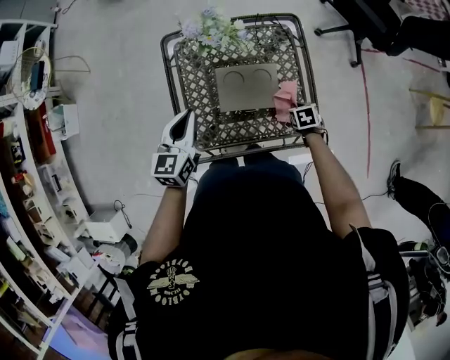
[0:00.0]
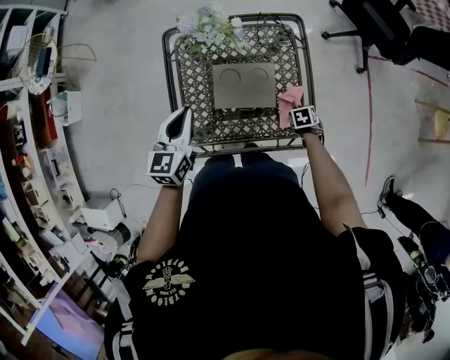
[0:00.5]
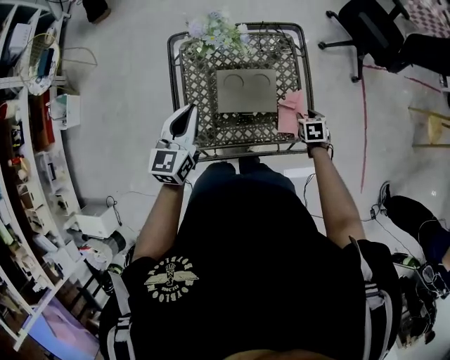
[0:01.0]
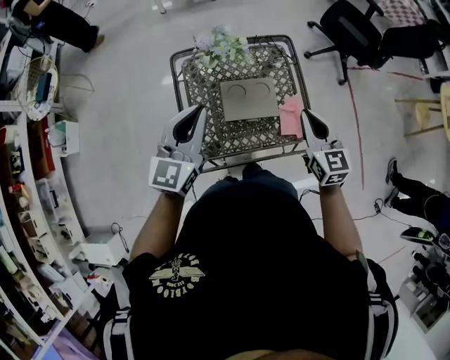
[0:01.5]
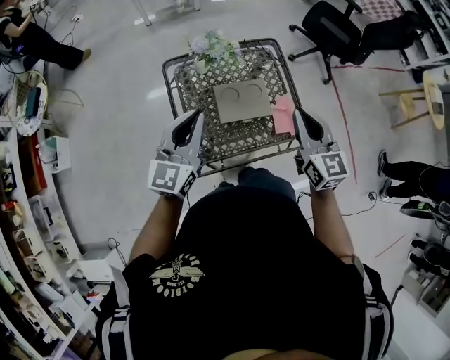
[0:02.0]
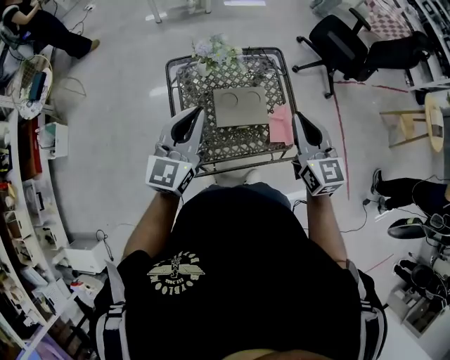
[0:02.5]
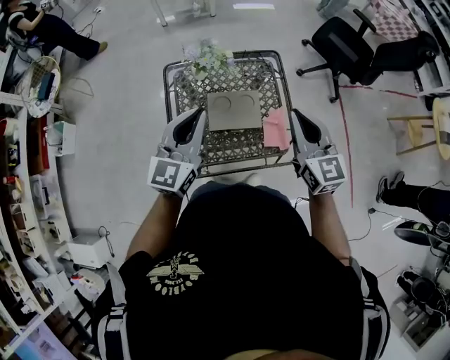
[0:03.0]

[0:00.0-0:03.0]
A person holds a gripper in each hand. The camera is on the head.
0:00.0 to 0:01.5: The left gripper moves upward, approximately 15 cm, and turns by about 20 degrees. The right gripper goes some 35 cm upward, tilts its fingers approximately 50 degrees upward, and opens, then closes again.
0:01.5 to 0:03.0: The left gripper moves to the right, some 5 cm. Meanwhile the right gripper moves upward, roughly 10 cm.

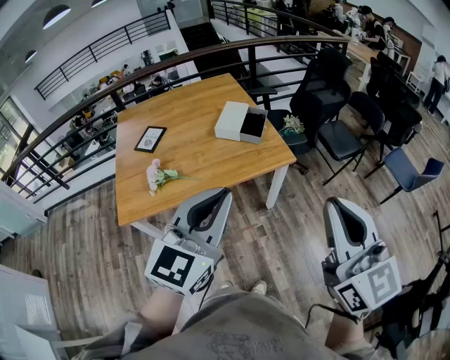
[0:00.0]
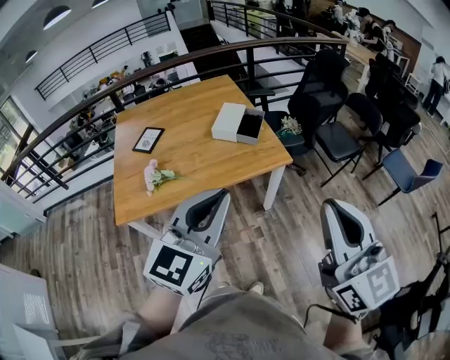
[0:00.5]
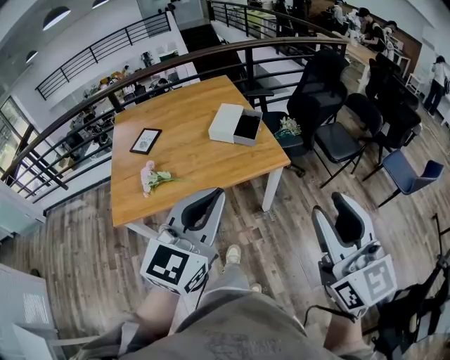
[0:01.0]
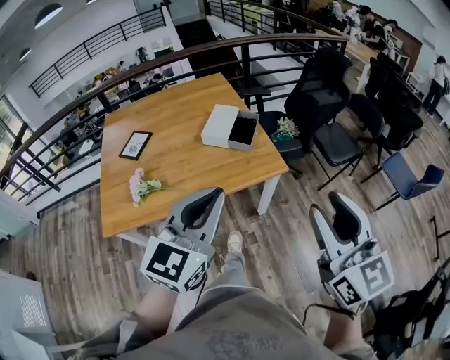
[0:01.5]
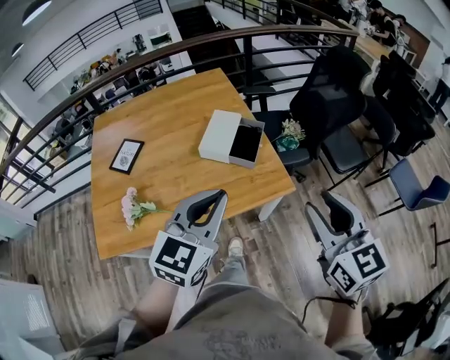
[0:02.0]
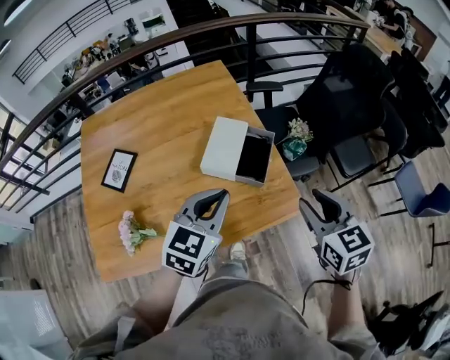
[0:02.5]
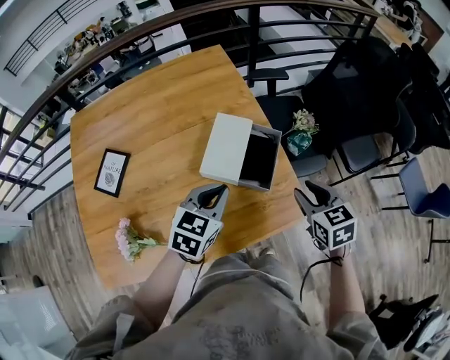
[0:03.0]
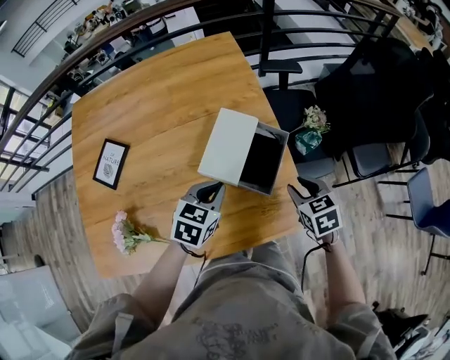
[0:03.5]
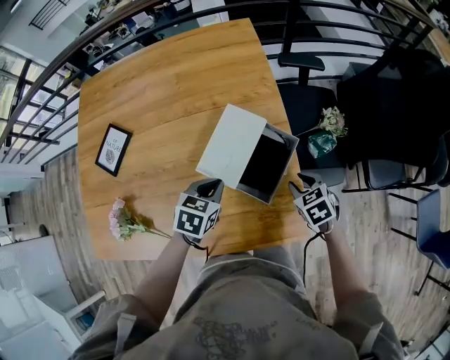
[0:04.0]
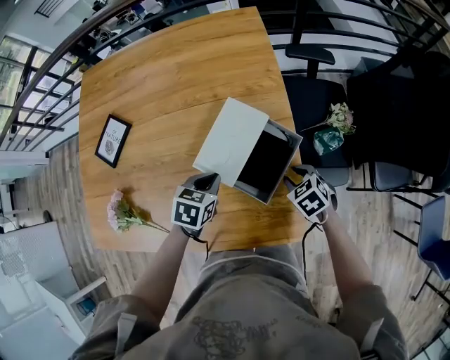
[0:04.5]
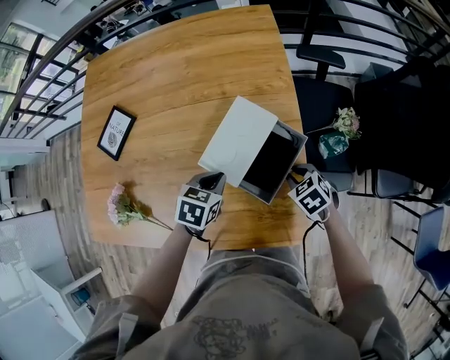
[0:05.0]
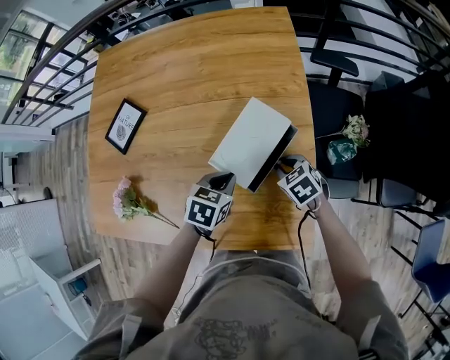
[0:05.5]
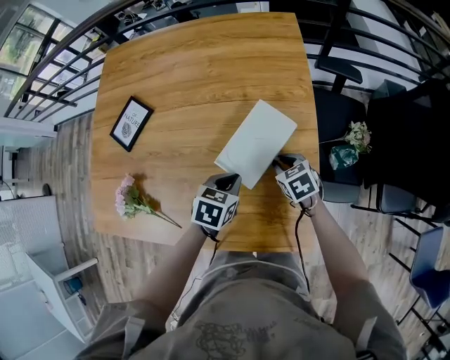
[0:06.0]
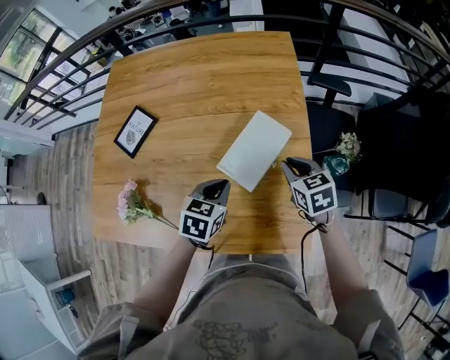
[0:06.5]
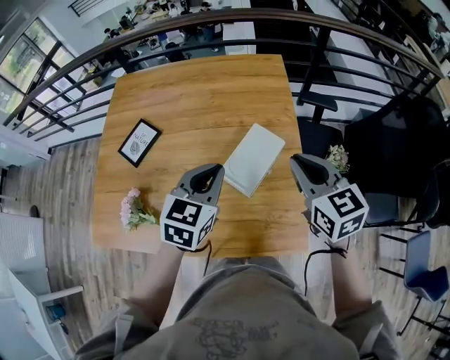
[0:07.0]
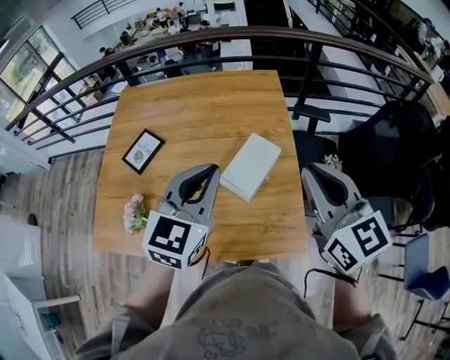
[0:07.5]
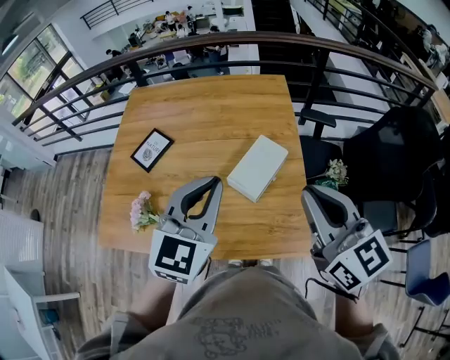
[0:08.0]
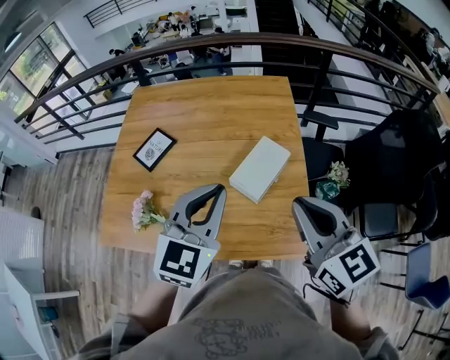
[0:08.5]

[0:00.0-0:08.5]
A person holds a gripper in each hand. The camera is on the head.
0:00.0 to 0:02.0: The grippers both shift forward and downward by roughly 30 cm. The right gripper opens up.
0:02.0 to 0:04.0: Both grippers move downward and forward, some 50 cm. The left gripper tilts its fingers approximately 40 degrees downward. The right gripper points its fingers some 40 degrees further downward.
0:04.0 to 0:06.5: The right gripper shifts approximately 15 cm forward, to the left and upward, and closes.
0:06.5 to 0:08.5: The right gripper moves upward and backward, roughly 35 cm, and tips its fingers upward by approximately 30 degrees; the left gripper shifts about 30 cm upward, and tips its fingers upward by about 30 degrees.

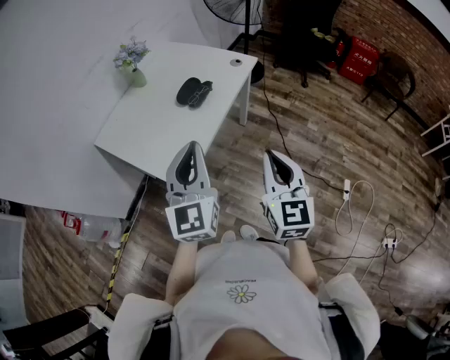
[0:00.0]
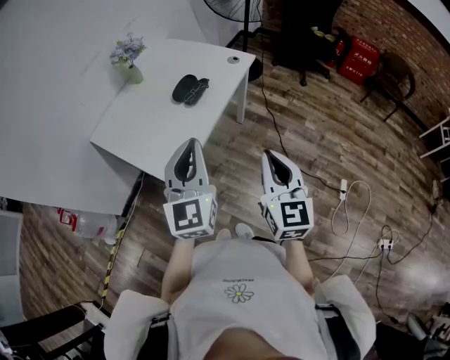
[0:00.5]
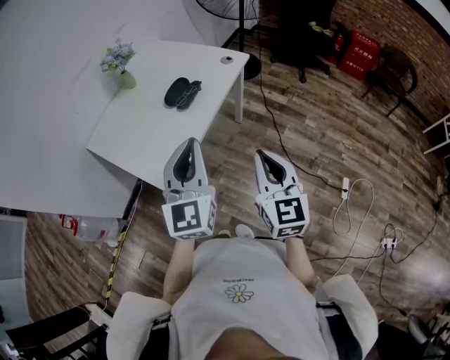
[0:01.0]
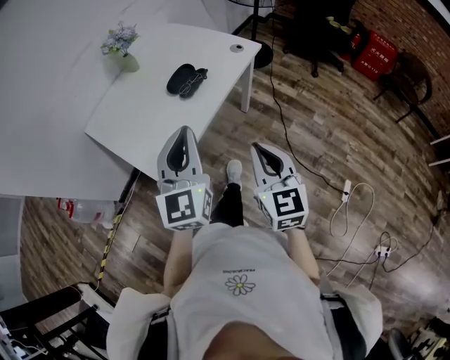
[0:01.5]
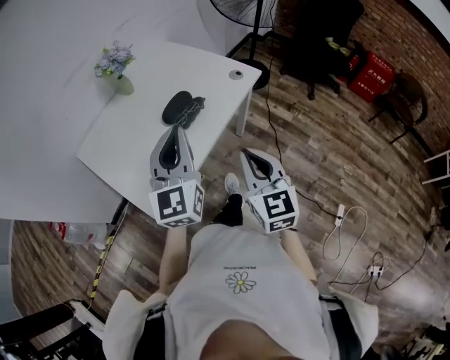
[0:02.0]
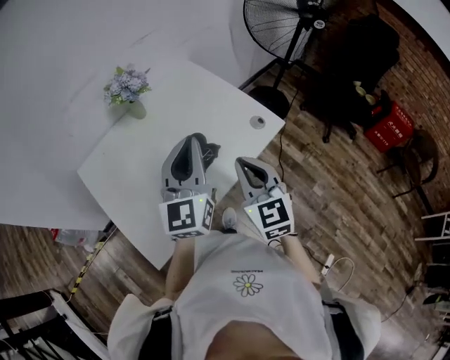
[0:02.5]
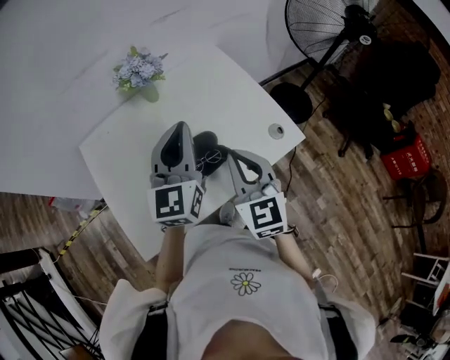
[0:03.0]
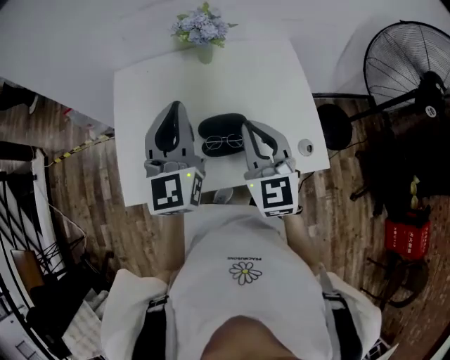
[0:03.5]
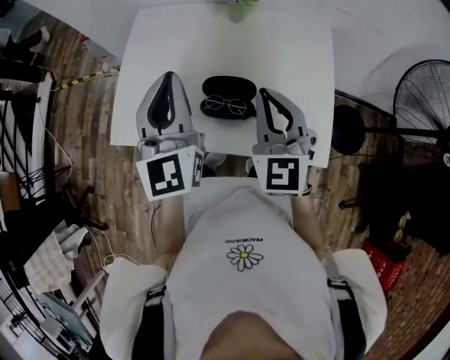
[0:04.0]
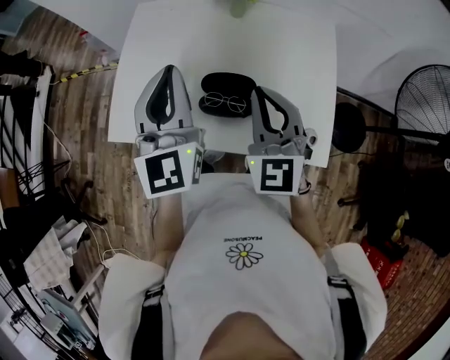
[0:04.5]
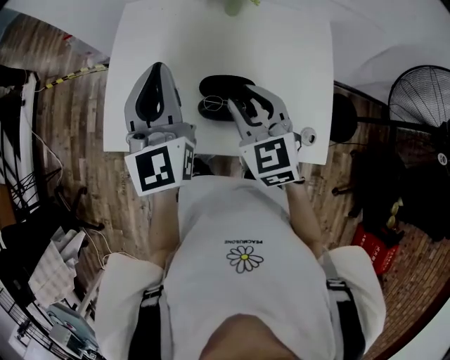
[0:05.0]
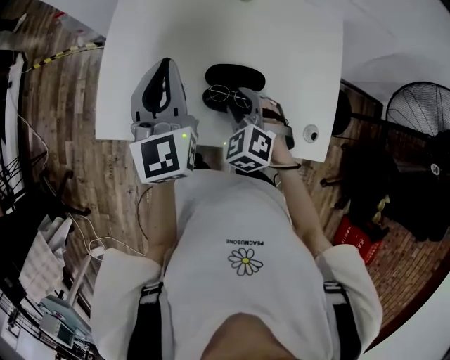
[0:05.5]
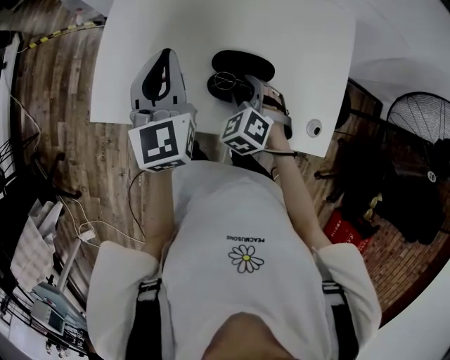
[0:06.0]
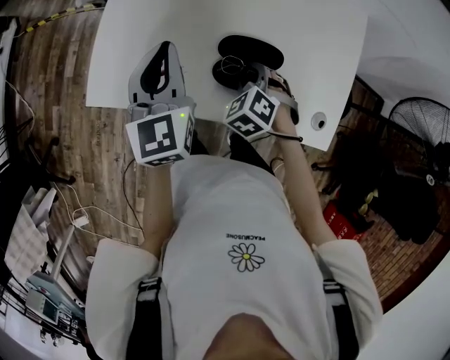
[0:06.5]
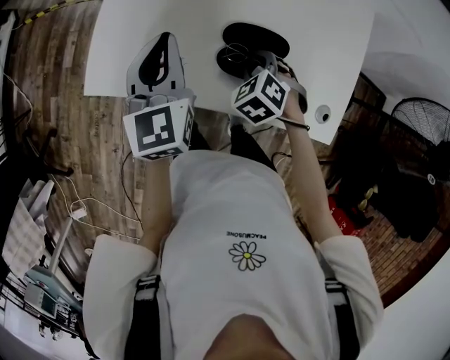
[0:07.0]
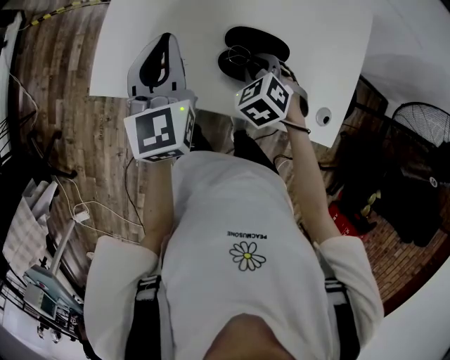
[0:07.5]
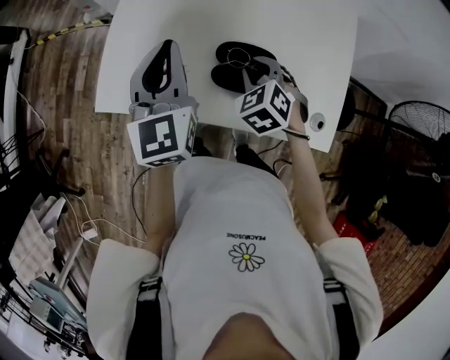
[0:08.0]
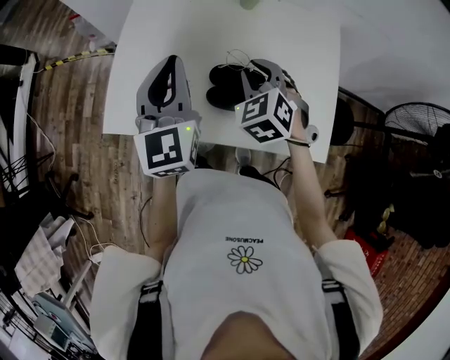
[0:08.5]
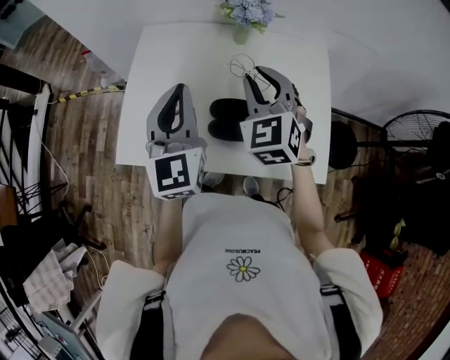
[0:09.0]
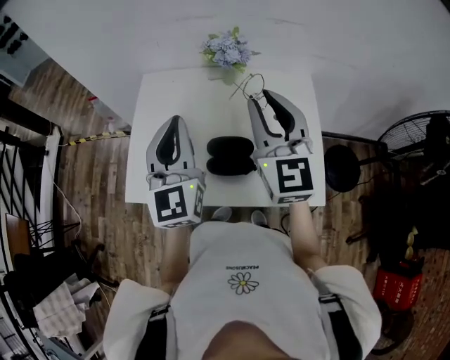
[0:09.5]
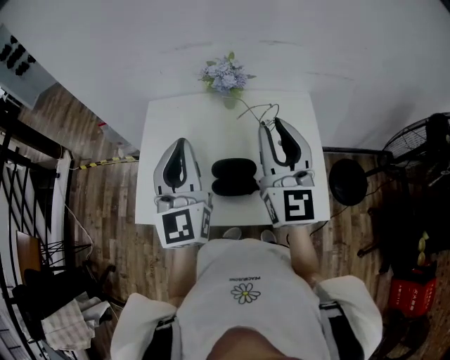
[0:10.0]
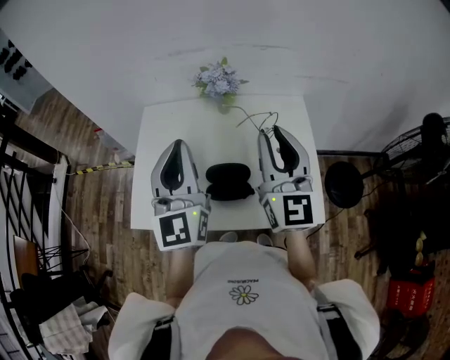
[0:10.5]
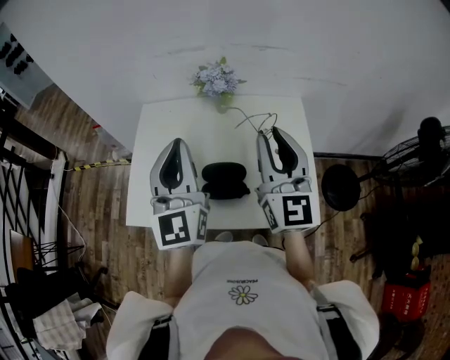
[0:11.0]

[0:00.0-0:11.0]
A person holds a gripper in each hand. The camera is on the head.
0:00.0 to 0:02.0: The two grippers go roughly 20 cm forward.
0:02.0 to 0:03.5: The right gripper changes place by approximately 30 cm, and changes its angle by approximately 50 degrees. The left gripper changes place by some 20 cm, and turns by approximately 50 degrees.
0:03.5 to 0:05.5: The right gripper heads downward, covering some 20 cm, tips its fingers downward by approximately 40 degrees, and opens; the left gripper shifts about 10 cm downward and to the left, and rotates some 20 degrees.
0:05.5 to 0:07.5: The left gripper goes approximately 10 cm downward and to the left.
0:07.5 to 0:09.0: The left gripper moves upward and to the right, about 15 cm. The right gripper travels upward by approximately 25 cm, and points its fingers approximately 40 degrees further upward.
0:09.0 to 0:11.0: The left gripper moves upward and to the right, about 10 cm, while the right gripper goes roughly 15 cm upward, to the right and backward, and tips its fingers upward by some 30 degrees.

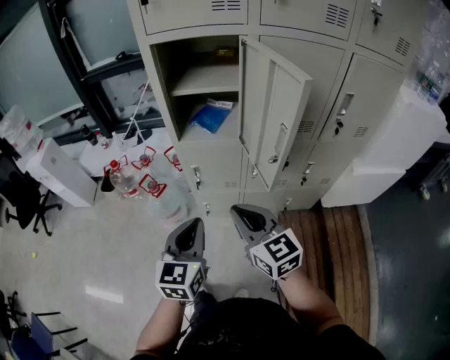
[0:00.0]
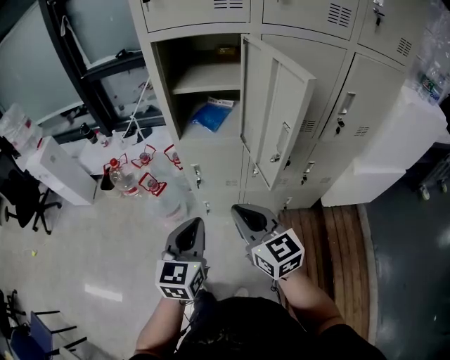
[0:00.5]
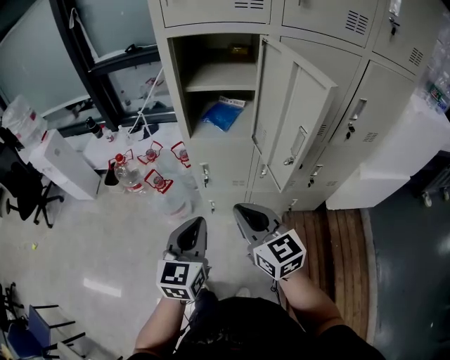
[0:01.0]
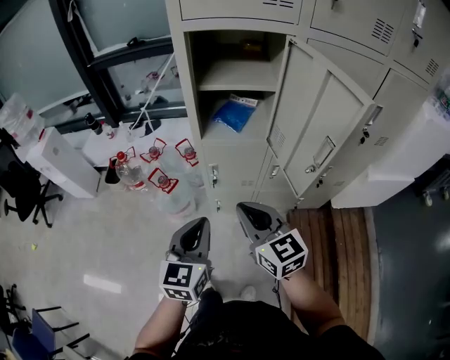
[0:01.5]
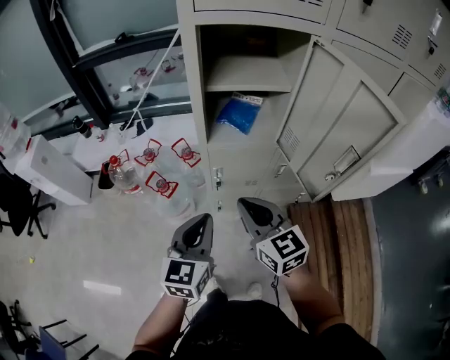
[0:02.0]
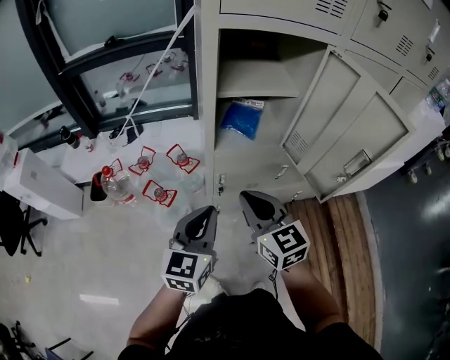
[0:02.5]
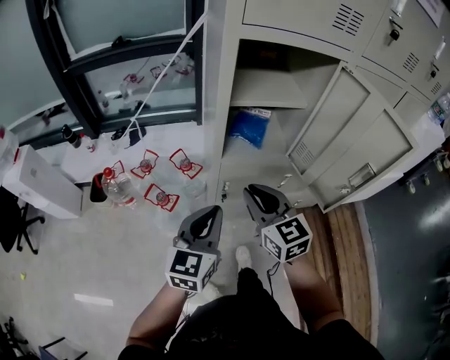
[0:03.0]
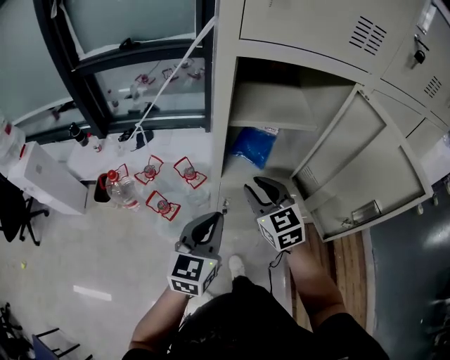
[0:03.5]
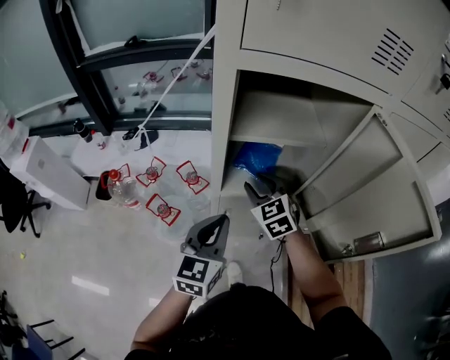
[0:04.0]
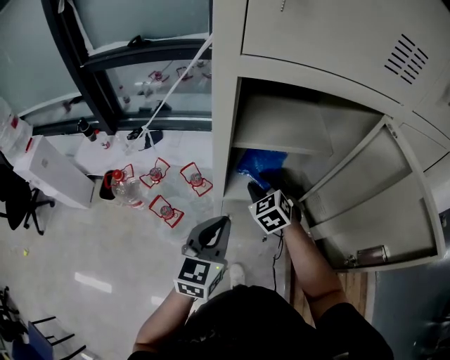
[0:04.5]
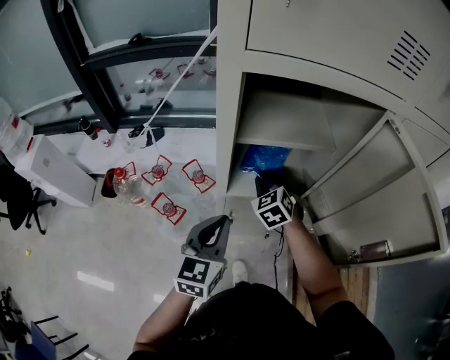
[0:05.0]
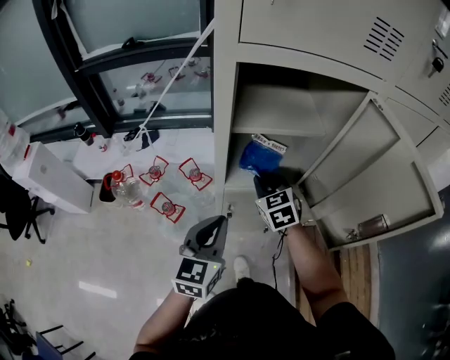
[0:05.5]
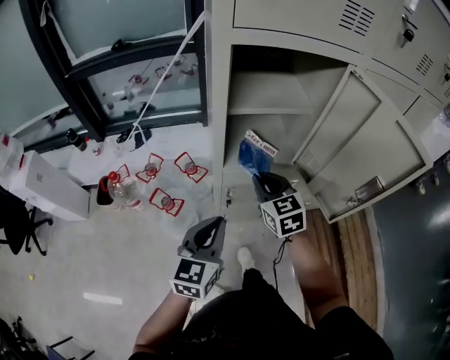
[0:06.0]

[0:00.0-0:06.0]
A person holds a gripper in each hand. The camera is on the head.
0:00.0 to 0:02.0: The two grippers go some 15 cm forward and to the left.
0:02.0 to 0:04.0: The right gripper moves forward, some 25 cm, swivels some 30 degrees, and opens its fingers, while the left gripper shifts about 15 cm forward.
0:04.0 to 0:06.0: Both grippers travel together backward, approximately 10 cm. The right gripper closes its fingers.
